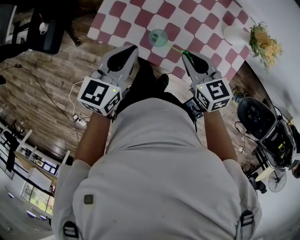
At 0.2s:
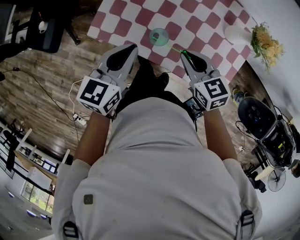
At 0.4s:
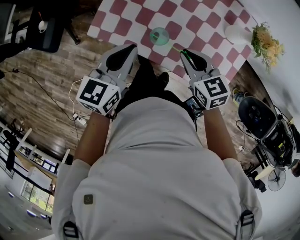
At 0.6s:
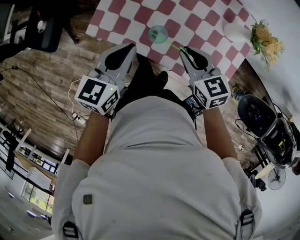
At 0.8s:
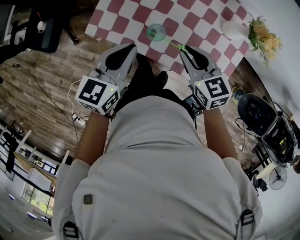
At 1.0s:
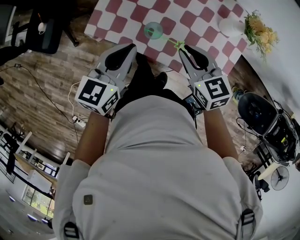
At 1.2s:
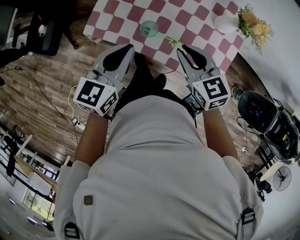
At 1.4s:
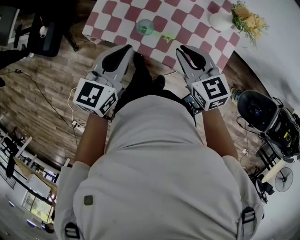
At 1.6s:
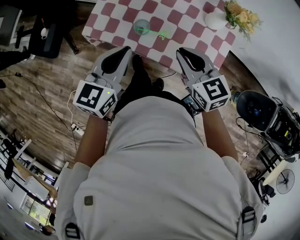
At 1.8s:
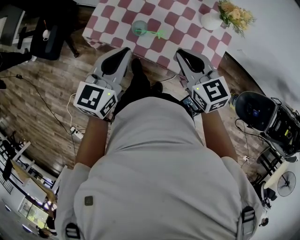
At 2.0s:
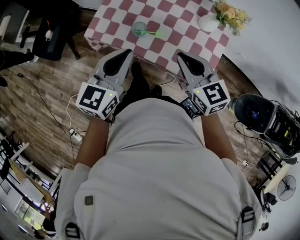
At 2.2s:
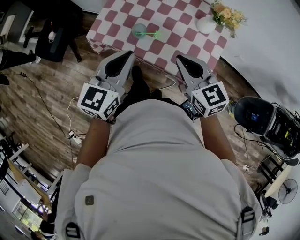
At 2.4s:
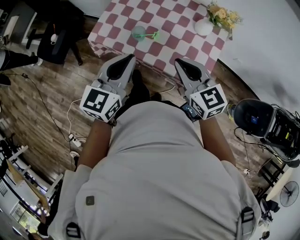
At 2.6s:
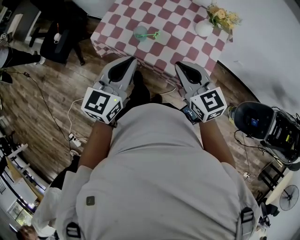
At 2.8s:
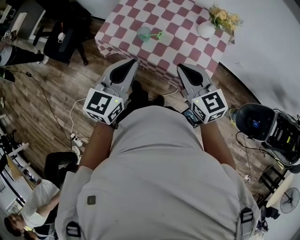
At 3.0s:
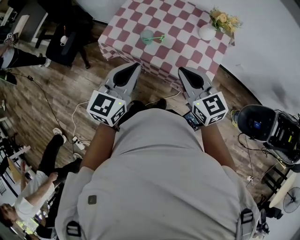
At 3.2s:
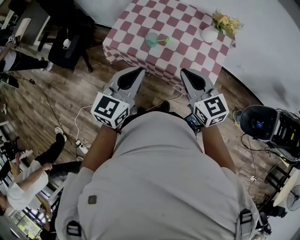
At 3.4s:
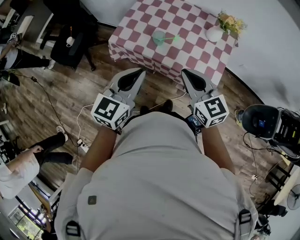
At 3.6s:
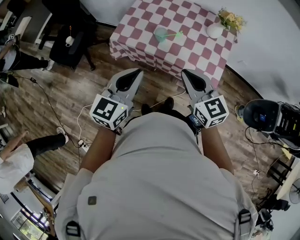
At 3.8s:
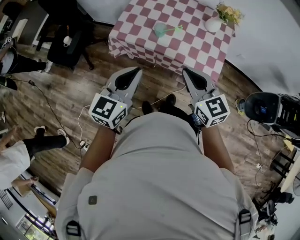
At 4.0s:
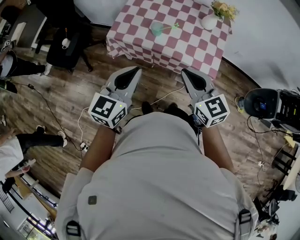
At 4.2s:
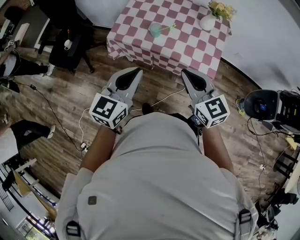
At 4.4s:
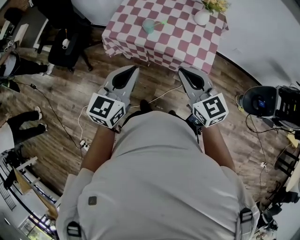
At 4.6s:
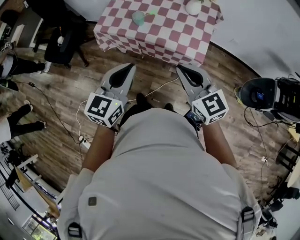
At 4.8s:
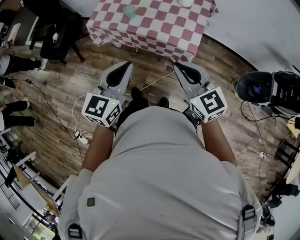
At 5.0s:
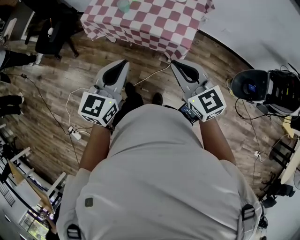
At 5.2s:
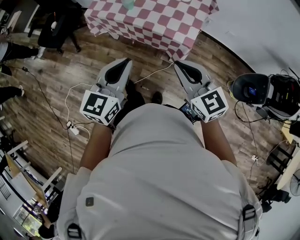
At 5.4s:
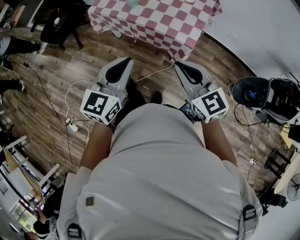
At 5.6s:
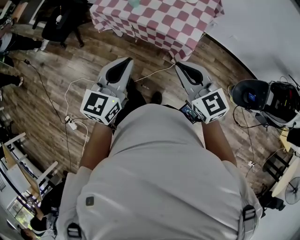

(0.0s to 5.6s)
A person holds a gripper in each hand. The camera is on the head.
0.0s - 1.4s: The right gripper goes approximately 10 cm upward and backward, while the left gripper goes roughly 5 cm backward.
1.4s - 2.8s: The grippers both shift backward and upward by about 15 cm.
2.8s - 4.2s: Both grippers move backward and to the left, roughly 15 cm.
4.2s - 5.6s: Both grippers travel together to the right and backward, about 20 cm.

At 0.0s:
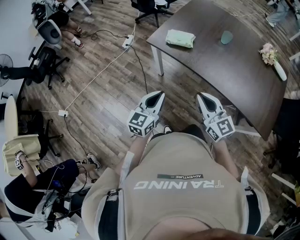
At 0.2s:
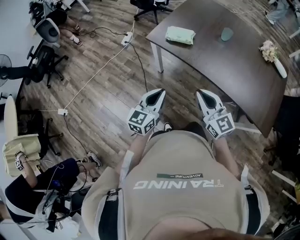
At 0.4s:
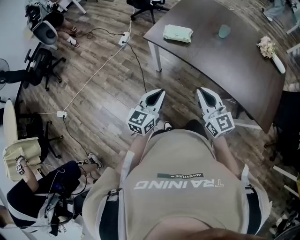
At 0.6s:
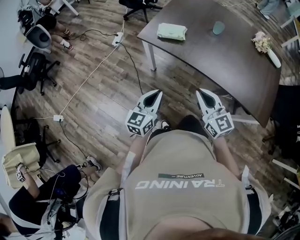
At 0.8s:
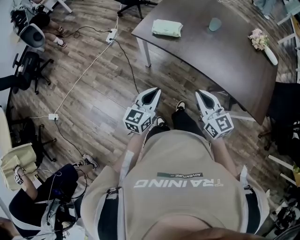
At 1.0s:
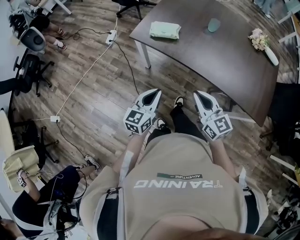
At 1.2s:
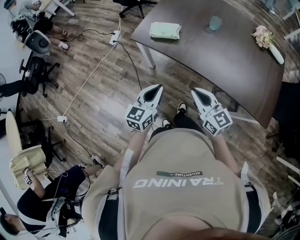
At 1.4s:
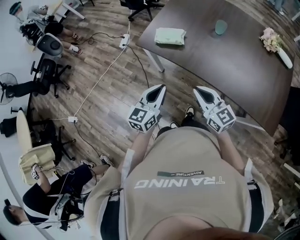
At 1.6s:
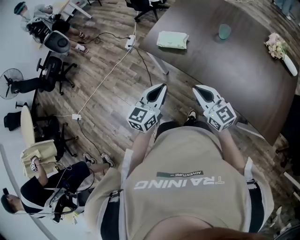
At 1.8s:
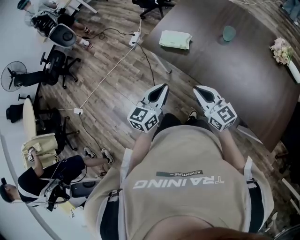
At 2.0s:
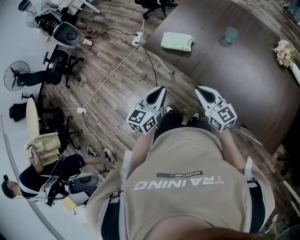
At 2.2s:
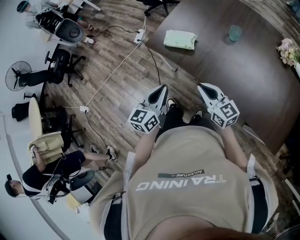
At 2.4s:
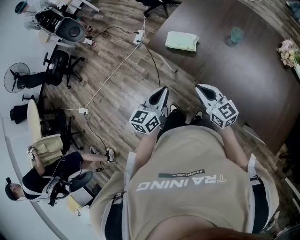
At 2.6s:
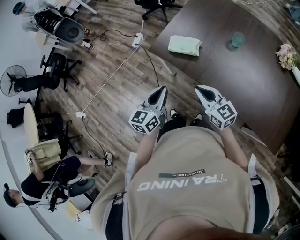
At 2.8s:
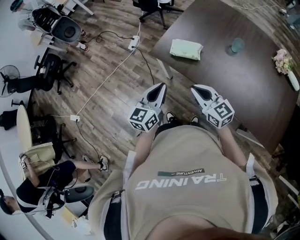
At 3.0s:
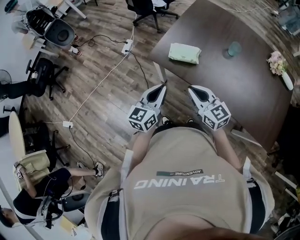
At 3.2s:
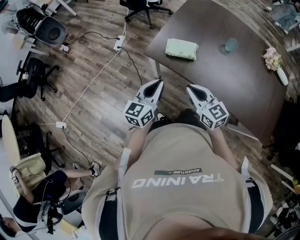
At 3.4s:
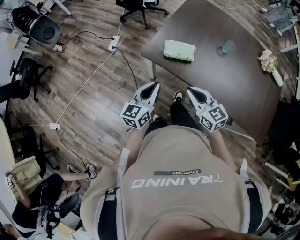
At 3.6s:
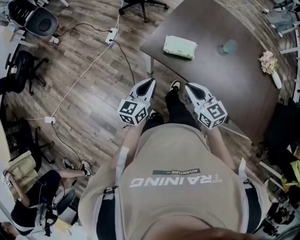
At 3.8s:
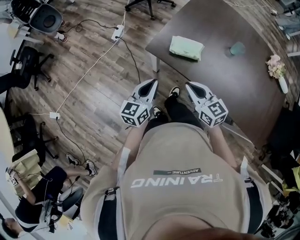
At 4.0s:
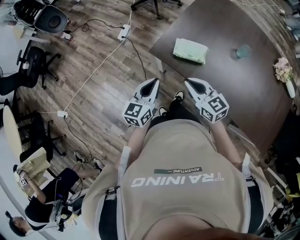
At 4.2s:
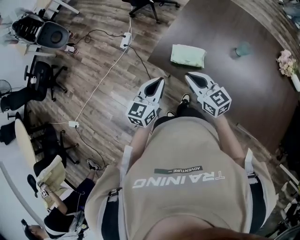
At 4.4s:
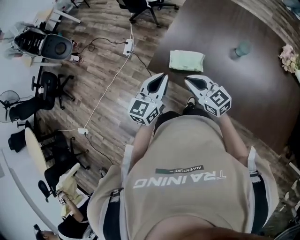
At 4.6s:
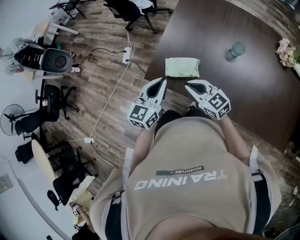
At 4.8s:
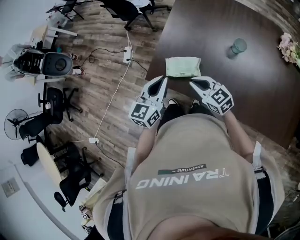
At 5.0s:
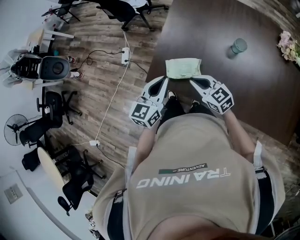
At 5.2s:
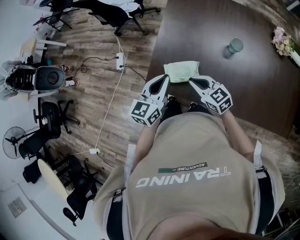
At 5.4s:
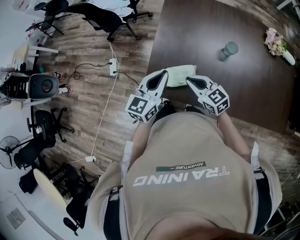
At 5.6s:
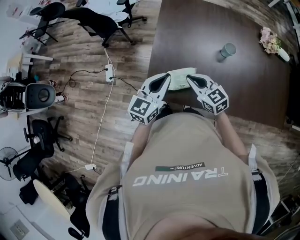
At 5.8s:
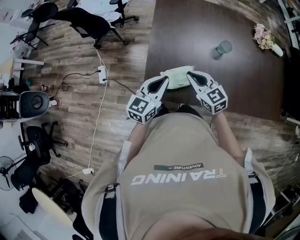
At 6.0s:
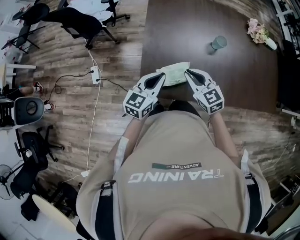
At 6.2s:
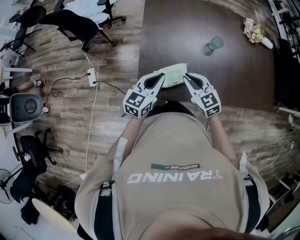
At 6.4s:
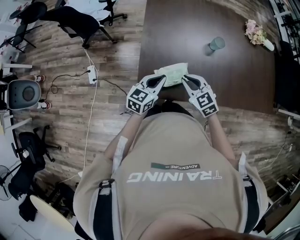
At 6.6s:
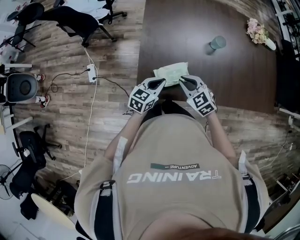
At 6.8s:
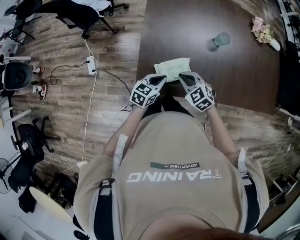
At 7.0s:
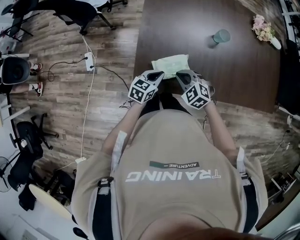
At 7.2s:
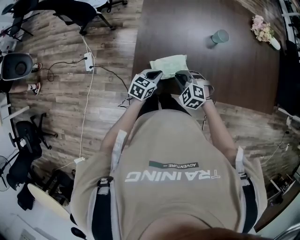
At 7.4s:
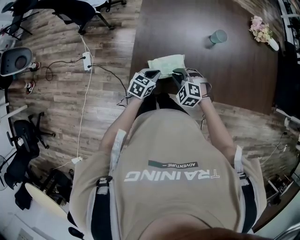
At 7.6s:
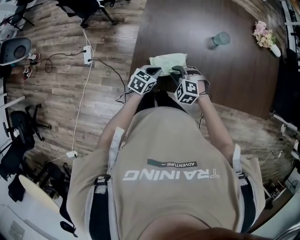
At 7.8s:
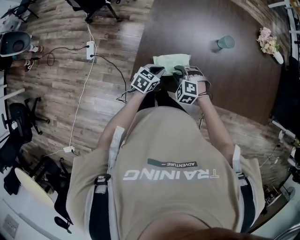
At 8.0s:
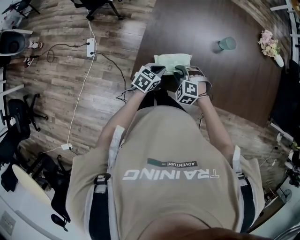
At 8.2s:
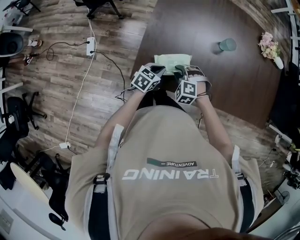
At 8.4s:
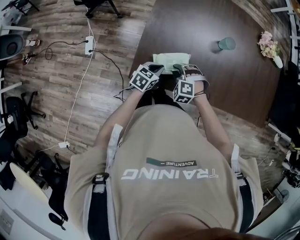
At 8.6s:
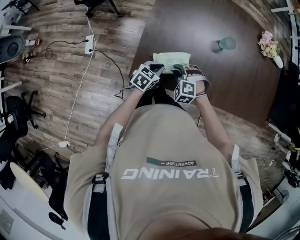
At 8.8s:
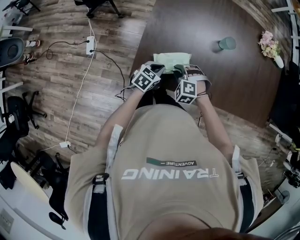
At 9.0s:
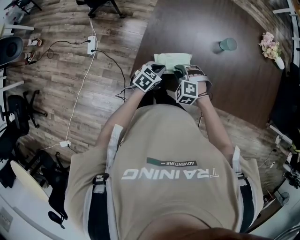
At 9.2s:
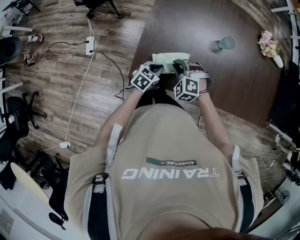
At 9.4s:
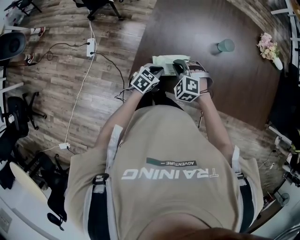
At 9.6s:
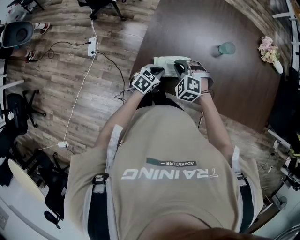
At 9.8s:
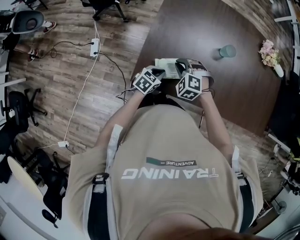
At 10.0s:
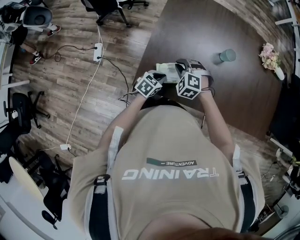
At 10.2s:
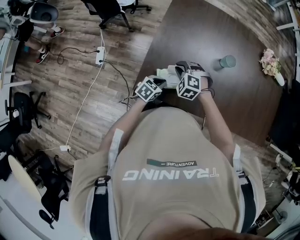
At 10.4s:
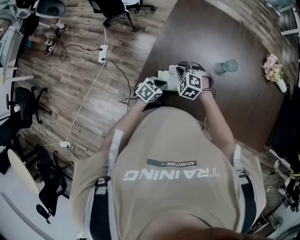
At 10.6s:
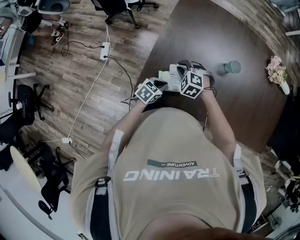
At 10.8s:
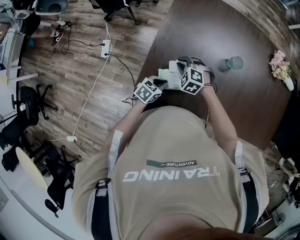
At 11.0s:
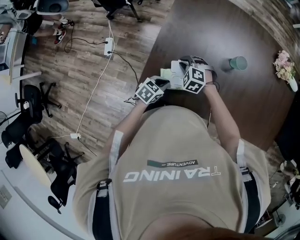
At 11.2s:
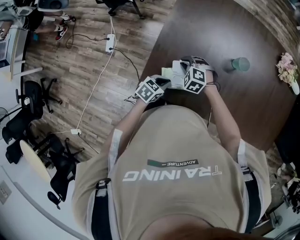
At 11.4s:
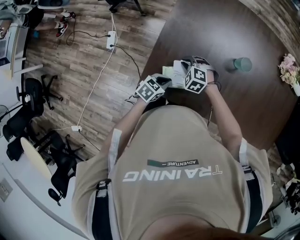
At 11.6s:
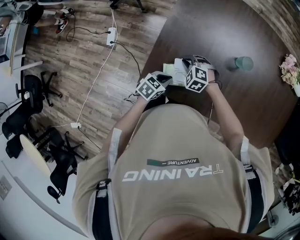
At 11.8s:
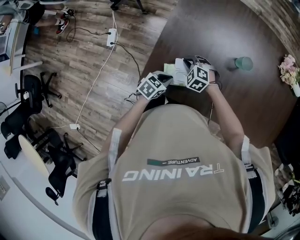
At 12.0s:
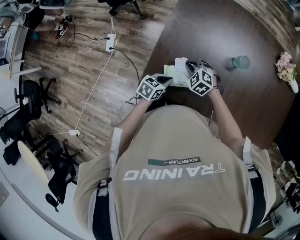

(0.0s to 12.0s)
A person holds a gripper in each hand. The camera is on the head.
0.0s - 1.6s: The two grippers go about 15 cm forward and to the right.
1.6s - 3.0s: The grippers both shift forward and to the left by about 15 cm.
3.0s - 4.4s: Both grippers travel together forward, about 15 cm.
4.4s - 6.0s: The right gripper changes place by approximately 10 cm, and changes its angle by about 40 degrees. The left gripper changes place by roughly 15 cm, and changes its angle by roughly 30 degrees.
6.0s - 7.6s: The two grippers go about 15 cm downward. The left gripper turns by some 30 degrees; the right gripper angles its fingers downward, by some 30 degrees.
7.6s - 9.0s: The grippers move only a little.
9.0s - 10.4s: The right gripper shifts about 10 cm forward.

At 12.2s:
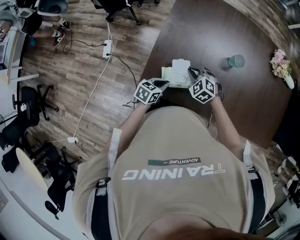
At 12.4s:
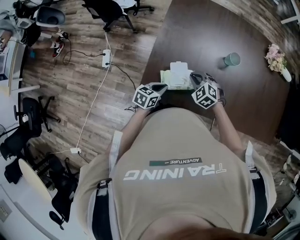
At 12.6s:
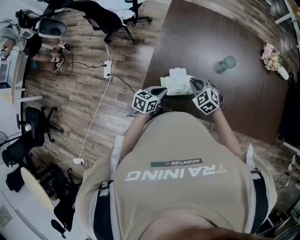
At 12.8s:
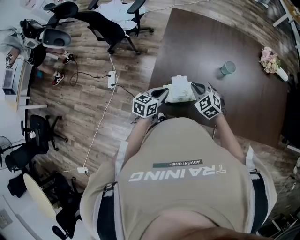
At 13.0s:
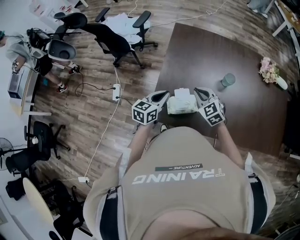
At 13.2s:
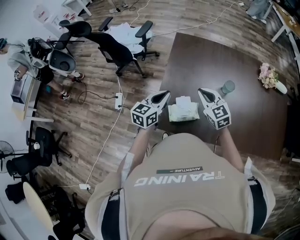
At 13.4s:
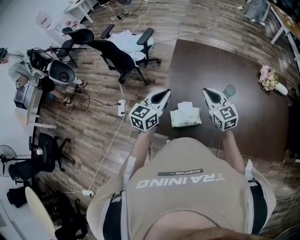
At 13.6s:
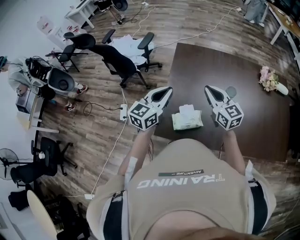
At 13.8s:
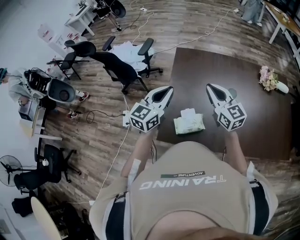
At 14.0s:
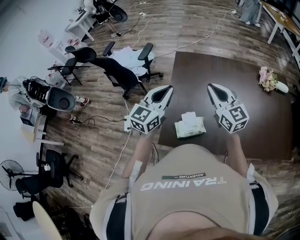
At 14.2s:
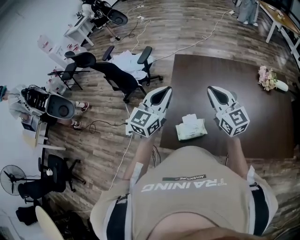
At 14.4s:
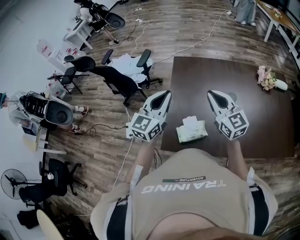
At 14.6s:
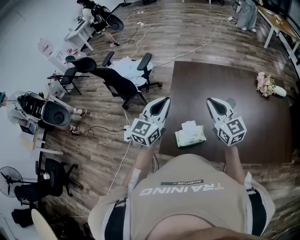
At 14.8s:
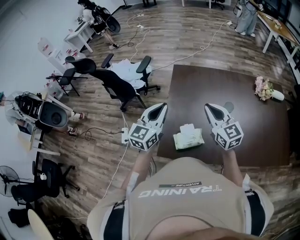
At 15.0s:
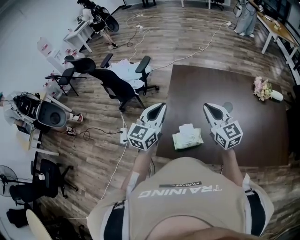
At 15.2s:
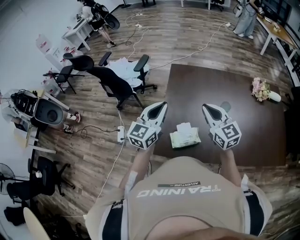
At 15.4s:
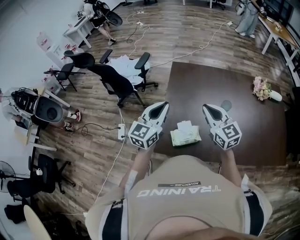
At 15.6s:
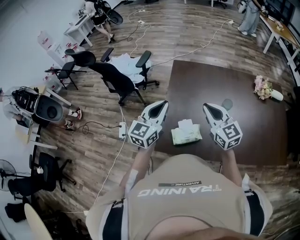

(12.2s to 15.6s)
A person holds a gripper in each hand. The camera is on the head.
12.2s - 13.8s: The two grippers go some 30 cm upward. The left gripper tips its fingers upward by approximately 40 degrees; the right gripper tilts its fingers approximately 50 degrees upward.
13.8s - 15.6s: The grippers make only small movements.

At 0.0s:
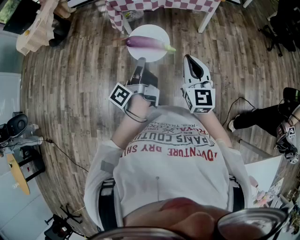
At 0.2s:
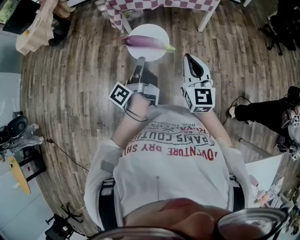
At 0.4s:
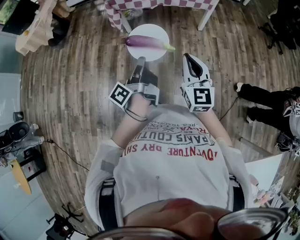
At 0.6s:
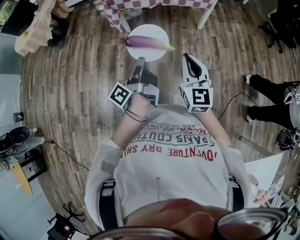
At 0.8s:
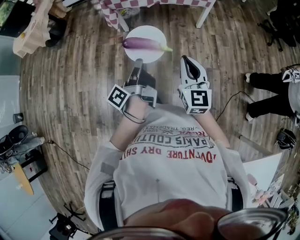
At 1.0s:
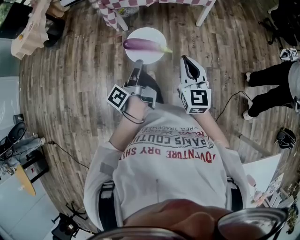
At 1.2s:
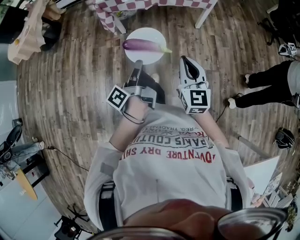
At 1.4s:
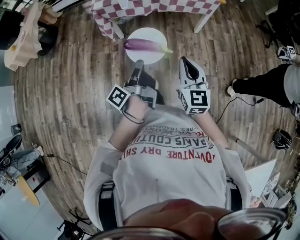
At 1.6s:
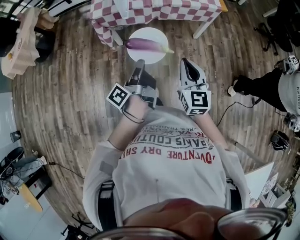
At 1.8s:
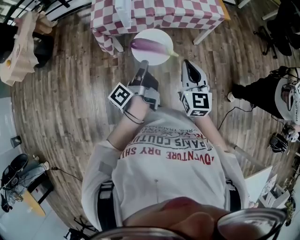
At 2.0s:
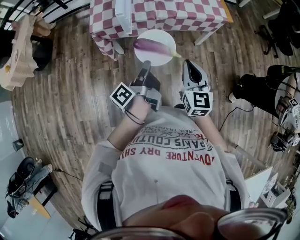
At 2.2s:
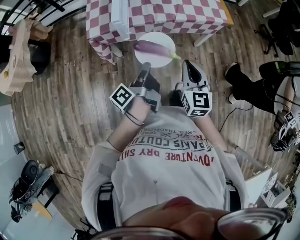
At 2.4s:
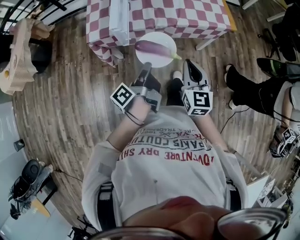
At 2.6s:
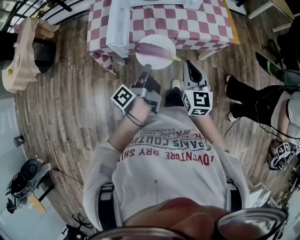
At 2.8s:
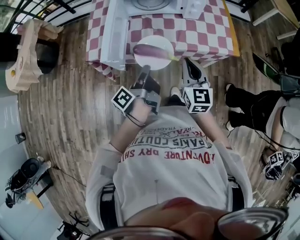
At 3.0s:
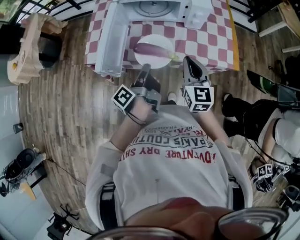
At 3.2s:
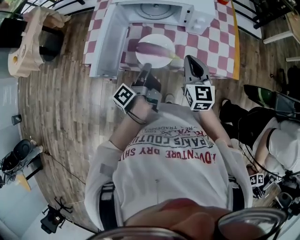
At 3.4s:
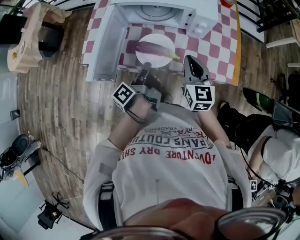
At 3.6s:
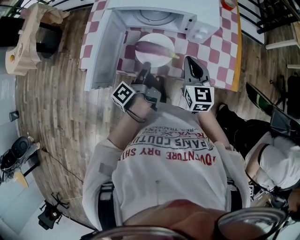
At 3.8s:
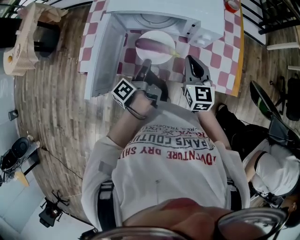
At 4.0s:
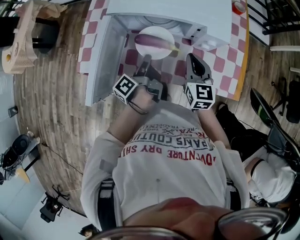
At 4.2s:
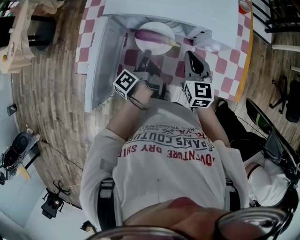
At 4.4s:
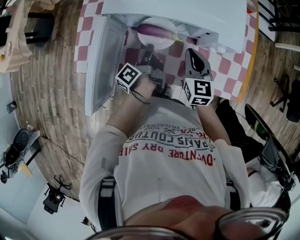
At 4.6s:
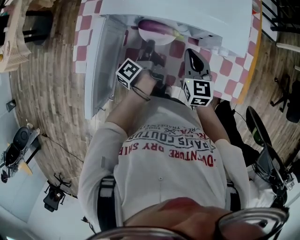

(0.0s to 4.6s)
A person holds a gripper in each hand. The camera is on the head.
0.0s - 1.6s: The right gripper shifts by about 25 cm.
1.6s - 3.0s: The right gripper moves some 50 cm.
3.0s - 4.6s: The right gripper ends up roughly 25 cm from where it was.
